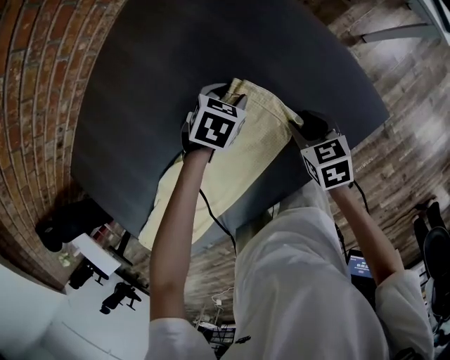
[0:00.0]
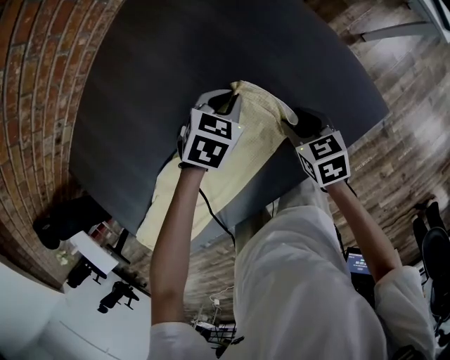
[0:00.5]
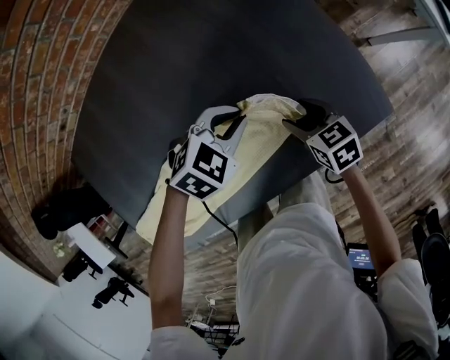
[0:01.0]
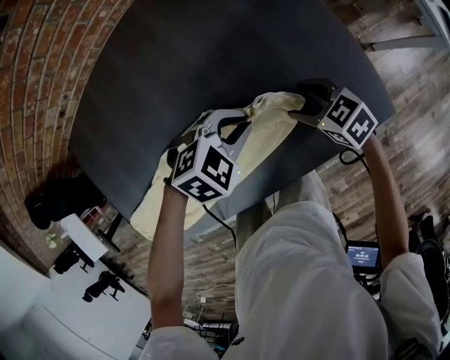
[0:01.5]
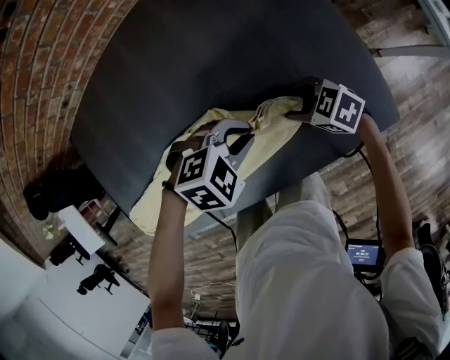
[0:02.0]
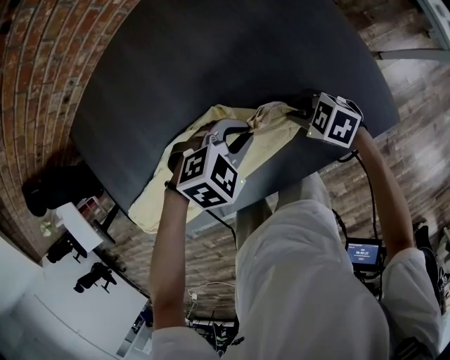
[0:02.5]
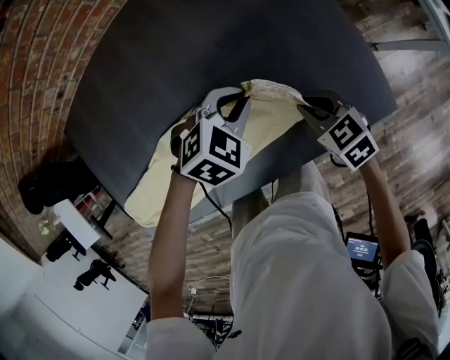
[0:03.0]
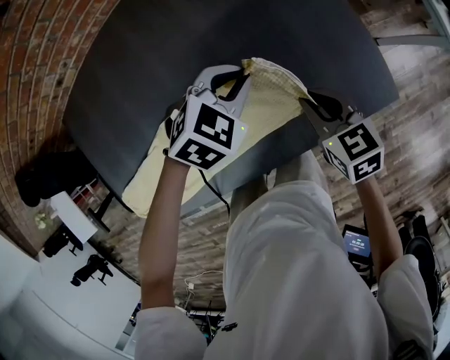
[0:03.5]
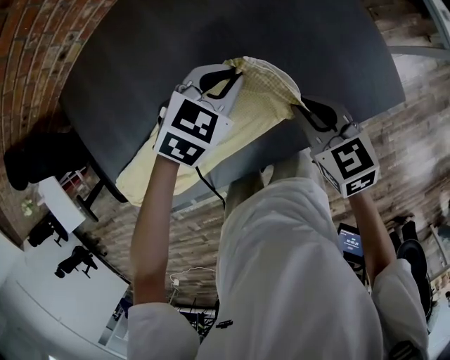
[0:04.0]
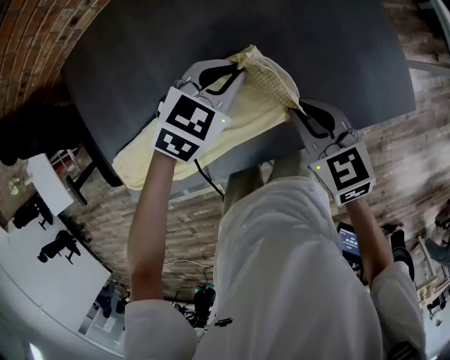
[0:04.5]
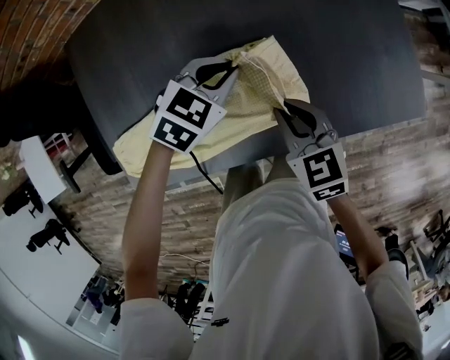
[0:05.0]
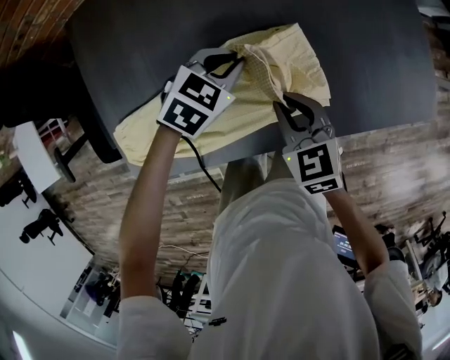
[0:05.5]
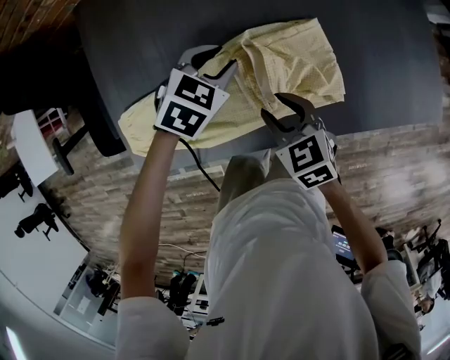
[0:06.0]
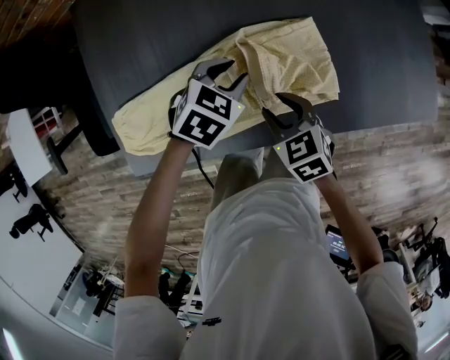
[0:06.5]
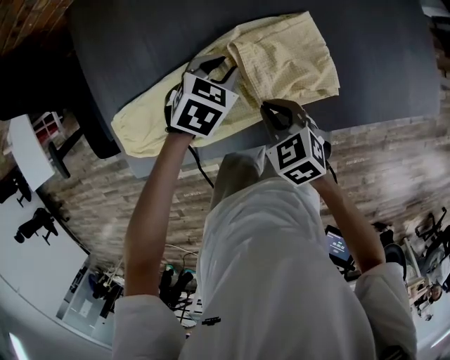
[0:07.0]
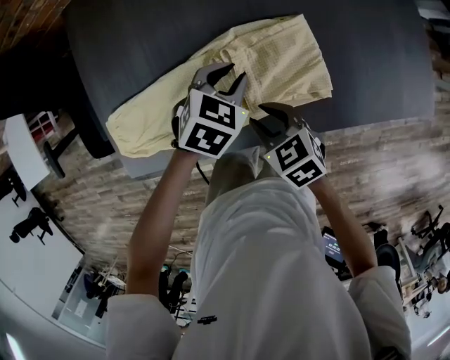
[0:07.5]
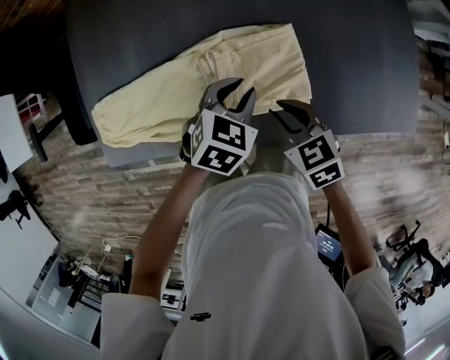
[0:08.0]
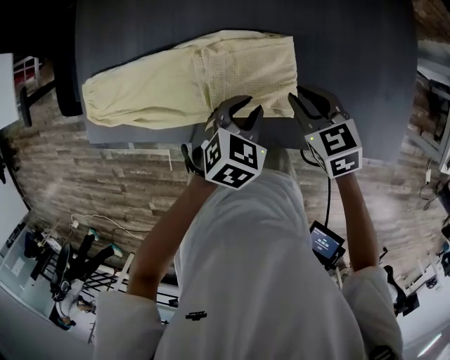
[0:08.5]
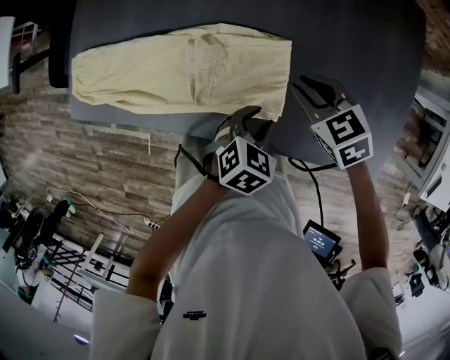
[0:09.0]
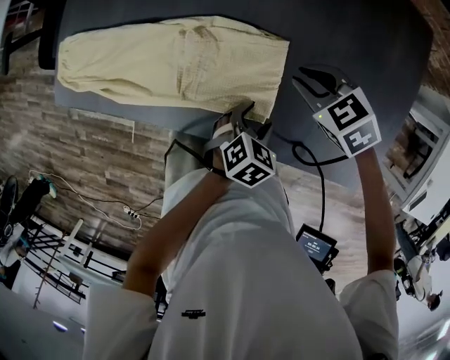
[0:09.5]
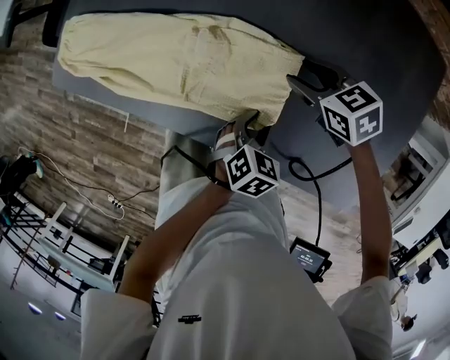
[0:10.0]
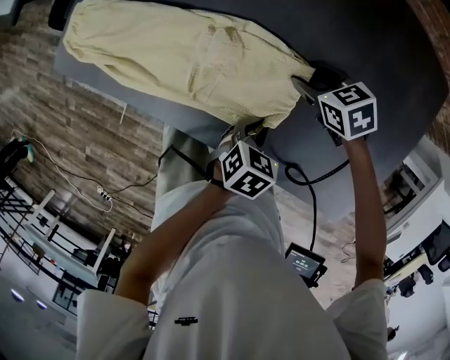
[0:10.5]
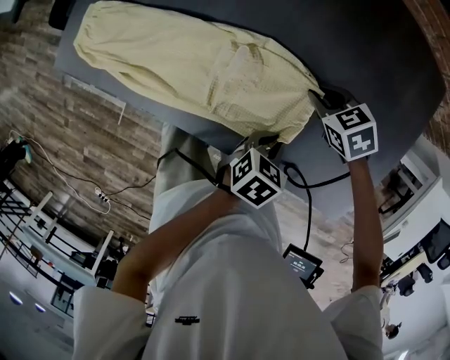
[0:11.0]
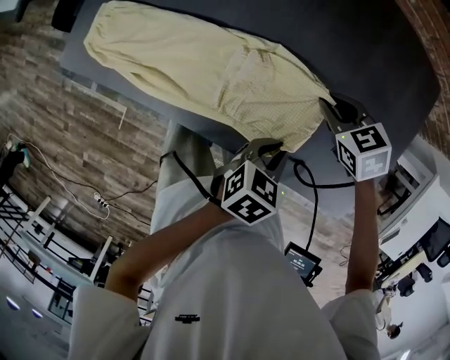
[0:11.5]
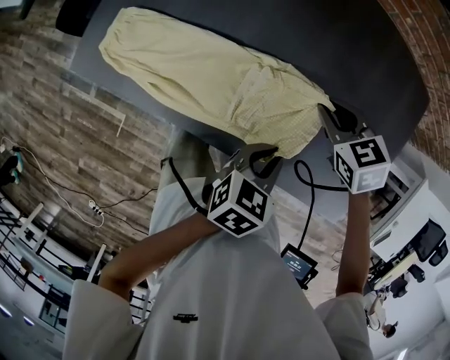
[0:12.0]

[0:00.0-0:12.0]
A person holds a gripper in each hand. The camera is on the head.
0:00.0 to 0:02.0: The left gripper changes place by some 20 cm, turns by about 30 degrees, and closes up, while the right gripper ends up roughly 10 cm from where it was, and swivels some 60 degrees.
0:02.0 to 0:04.0: The left gripper moves some 10 cm, and swivels roughly 30 degrees, while the right gripper travels upward by roughly 15 cm, swivels about 40 degrees, and closes.
0:04.0 to 0:06.0: The left gripper goes about 30 cm to the left, and opens; the right gripper travels to the left and backward by roughly 30 cm, swivels about 20 degrees, and opens up.
0:06.0 to 0:08.0: The left gripper travels to the right and backward by some 10 cm. The right gripper heads to the right, covering some 10 cm.
0:08.0 to 0:10.0: The right gripper ends up roughly 20 cm from where it was, rotates roughly 30 degrees, and opens its fingers. The left gripper moves approximately 15 cm, and turns by approximately 30 degrees.
0:10.0 to 0:12.0: The right gripper goes approximately 10 cm upward, and closes. Meanwhile the left gripper goes approximately 15 cm upward, turns by approximately 30 degrees, and closes up.

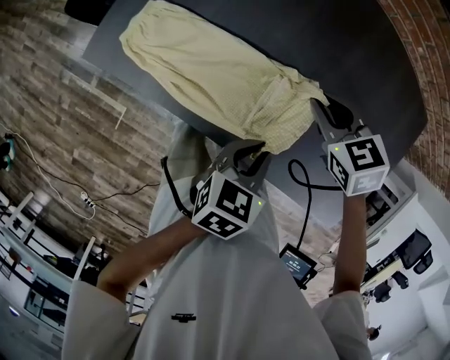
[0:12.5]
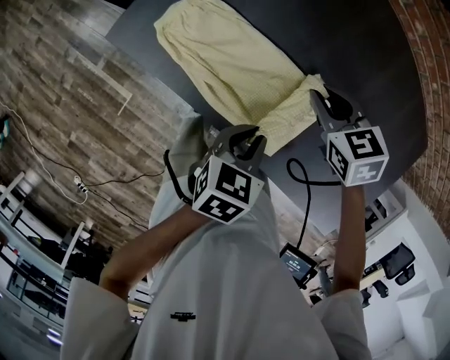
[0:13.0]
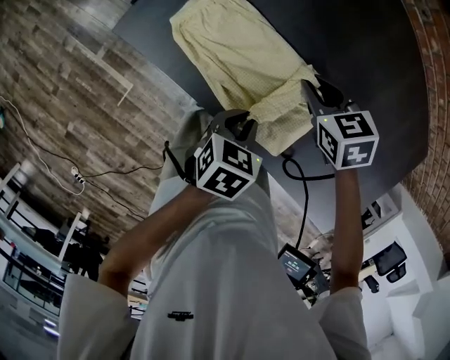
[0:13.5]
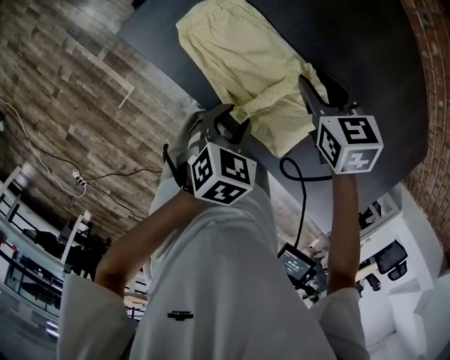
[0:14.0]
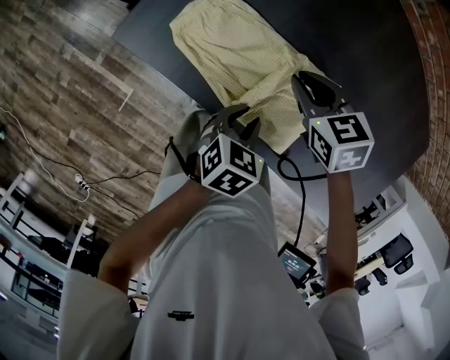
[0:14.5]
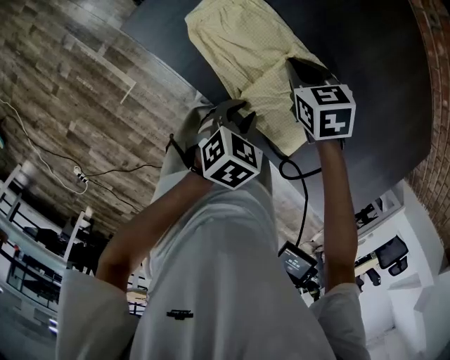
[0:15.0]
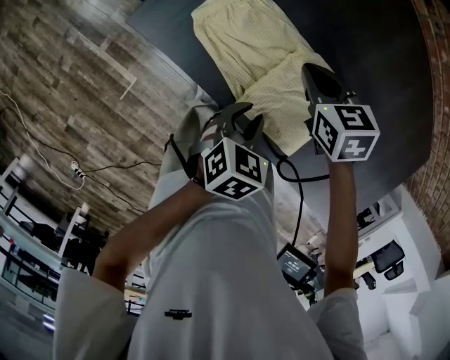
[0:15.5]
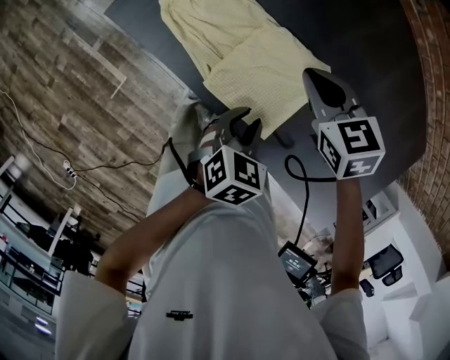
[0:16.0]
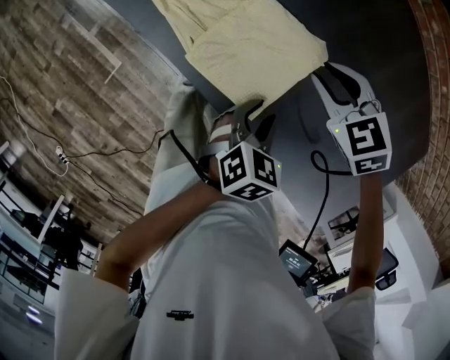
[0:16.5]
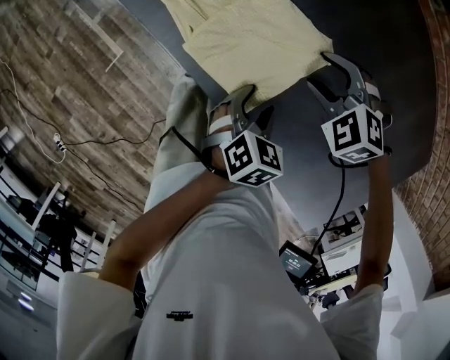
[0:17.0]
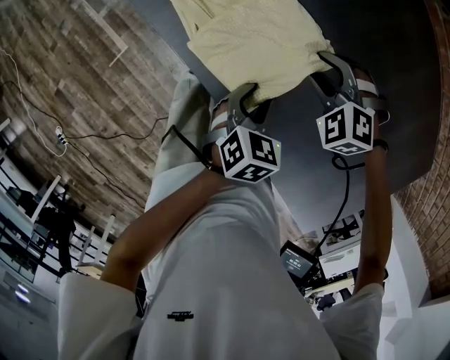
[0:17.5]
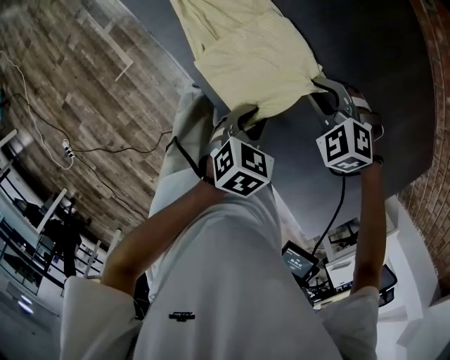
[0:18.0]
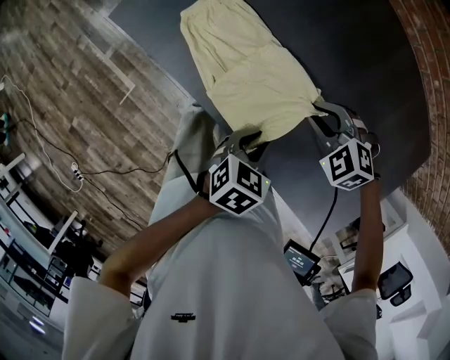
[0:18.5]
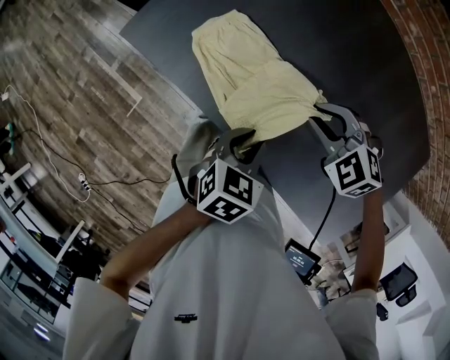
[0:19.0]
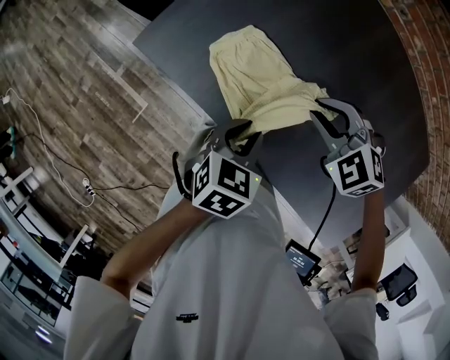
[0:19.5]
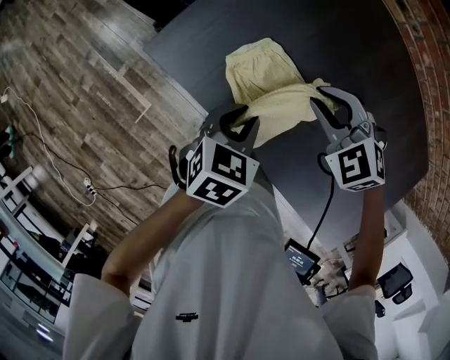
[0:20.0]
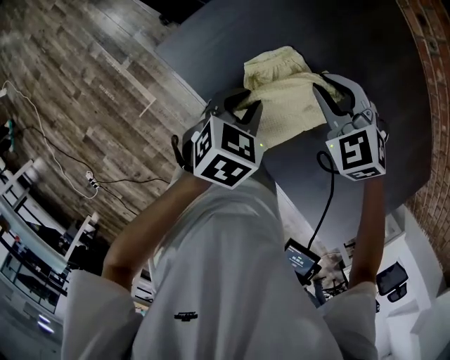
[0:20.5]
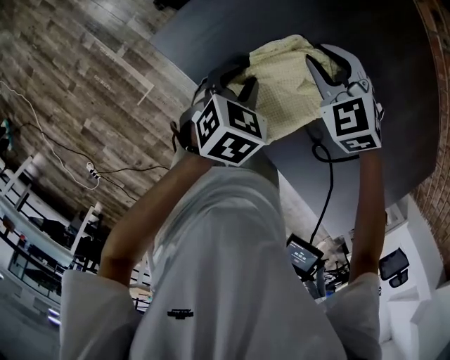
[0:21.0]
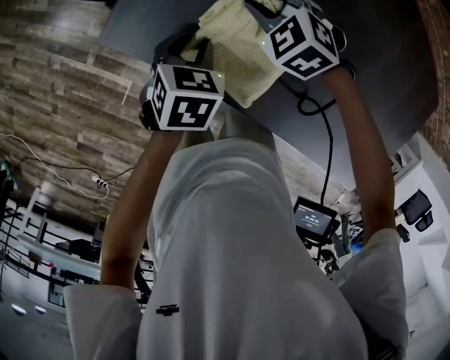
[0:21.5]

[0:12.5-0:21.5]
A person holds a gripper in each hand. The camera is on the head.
0:12.5 to 0:14.5: The left gripper is displaced to the left and downward by roughly 20 cm, while the right gripper shifts roughly 20 cm to the left, and opens and closes again.
0:14.5 to 0:17.0: Both grippers move to the right and backward, roughly 15 cm. The left gripper opens up. Meanwhile the right gripper twists some 60 degrees counterclockwise, seen from behind, and opens up.
0:17.0 to 0:19.5: The right gripper moves upward and to the left, some 10 cm, and closes up. The left gripper is displaced upward, to the left and forward by some 20 cm, and closes.
0:19.5 to 0:21.5: The two grippers go about 25 cm forward, to the left and downward.

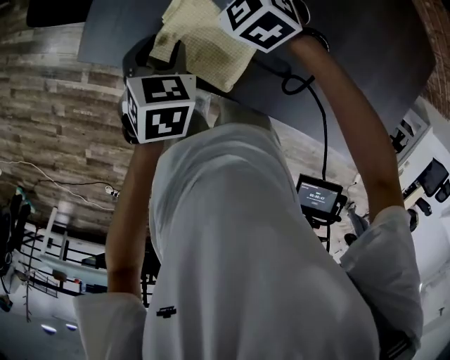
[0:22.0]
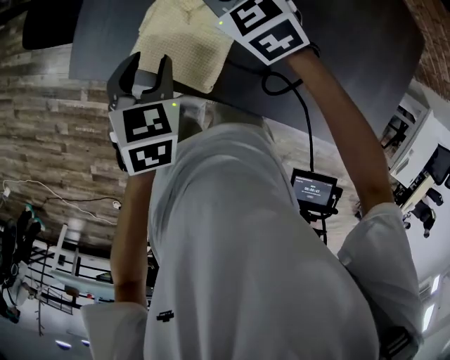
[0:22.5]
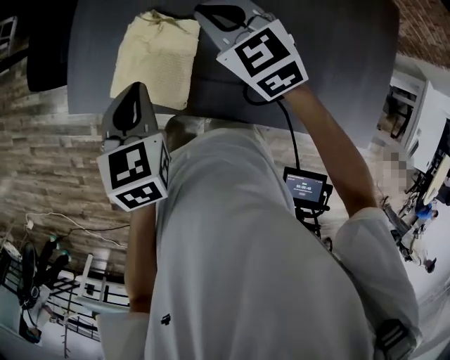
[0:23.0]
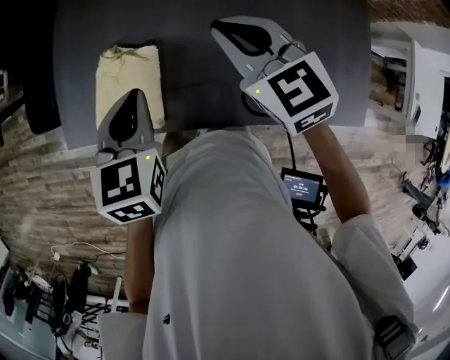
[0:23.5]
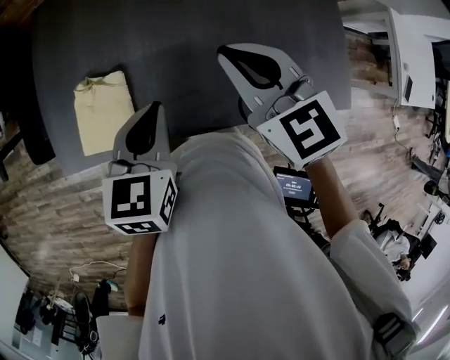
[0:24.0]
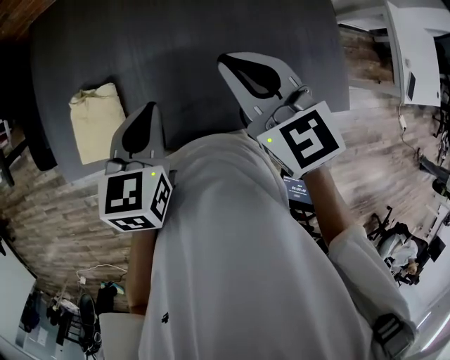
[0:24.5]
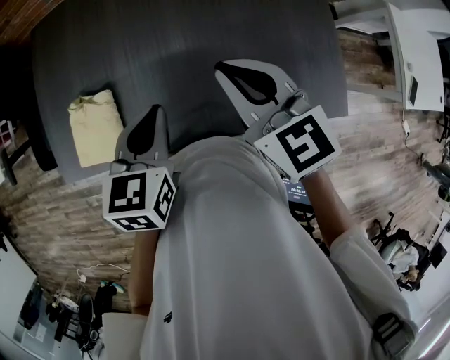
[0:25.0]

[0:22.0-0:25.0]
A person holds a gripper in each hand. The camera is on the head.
0:22.0 to 0:23.5: The right gripper moves to the right, upward and backward, roughly 35 cm, rotates some 50 degrees, and closes up; the left gripper moves to the right and upward, roughly 25 cm, changes its angle by some 20 degrees, and closes up.
0:23.5 to 0:25.0: The left gripper shifts approximately 20 cm to the right. The right gripper moves to the right and backward, about 15 cm.

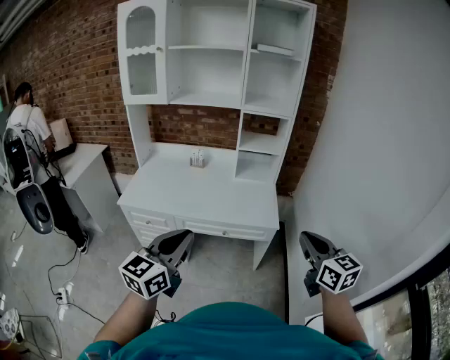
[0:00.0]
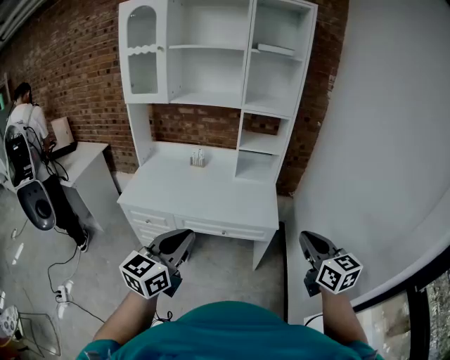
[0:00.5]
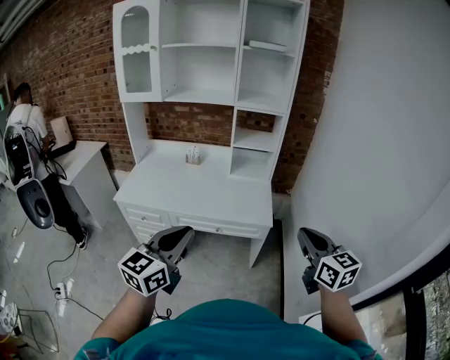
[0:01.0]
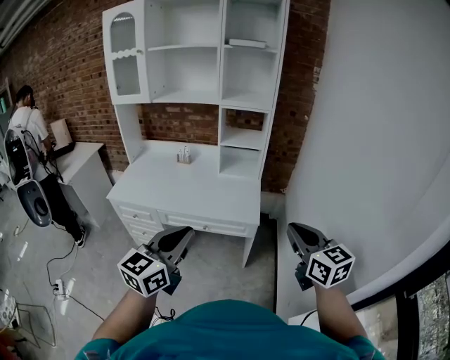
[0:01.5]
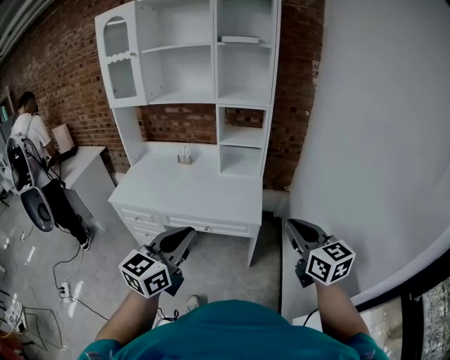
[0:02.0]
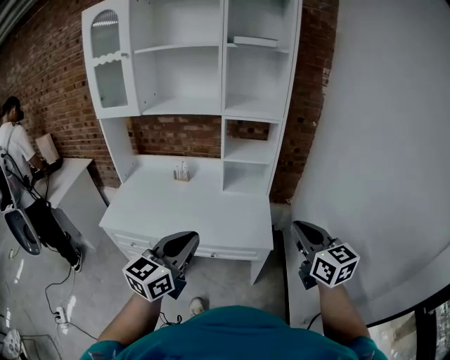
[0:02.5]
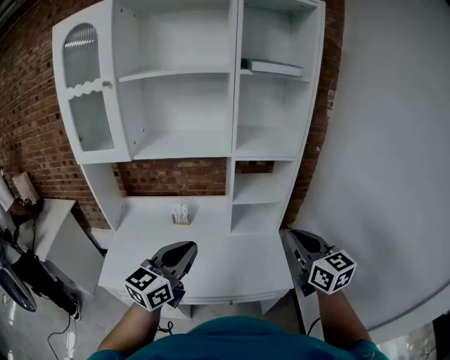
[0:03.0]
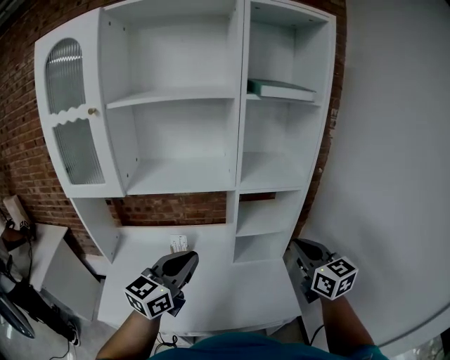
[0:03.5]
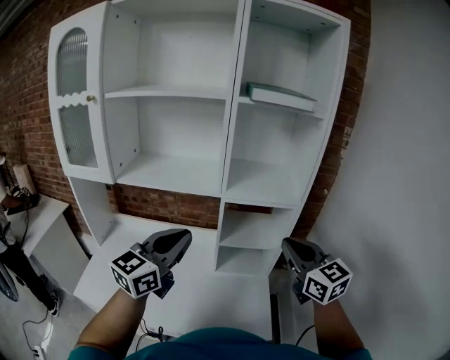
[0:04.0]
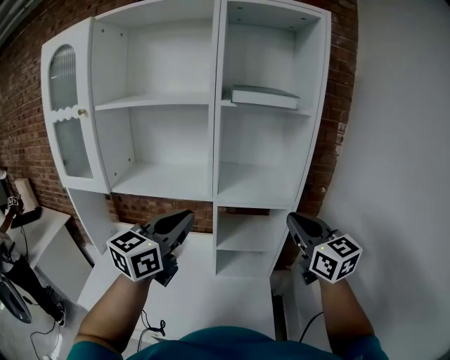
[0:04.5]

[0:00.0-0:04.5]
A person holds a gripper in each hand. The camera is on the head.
0:00.0 to 0:02.0: The left gripper shifts some 15 cm to the right. The right gripper travels to the right by about 10 cm.
0:02.0 to 0:04.5: The pair of grippers is taken forward, approximately 50 cm.
